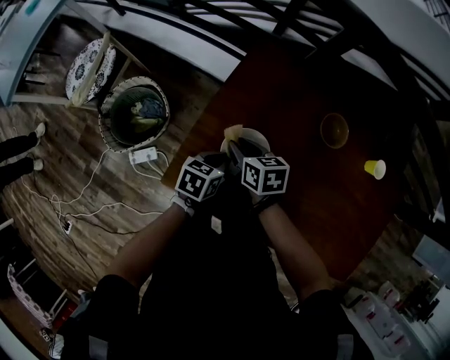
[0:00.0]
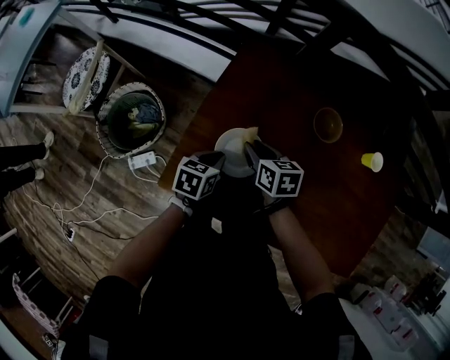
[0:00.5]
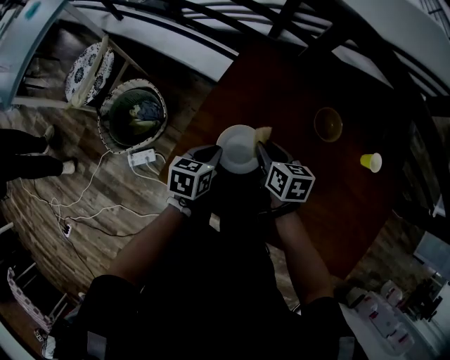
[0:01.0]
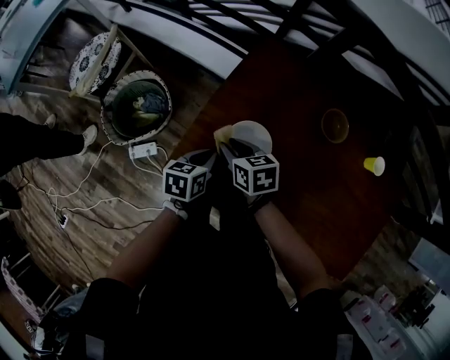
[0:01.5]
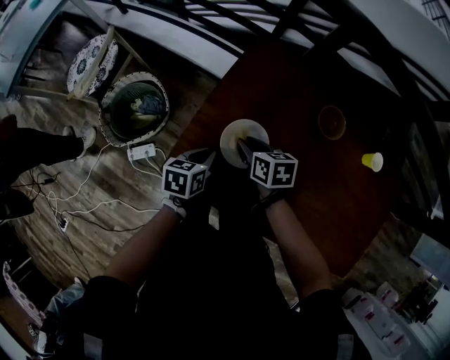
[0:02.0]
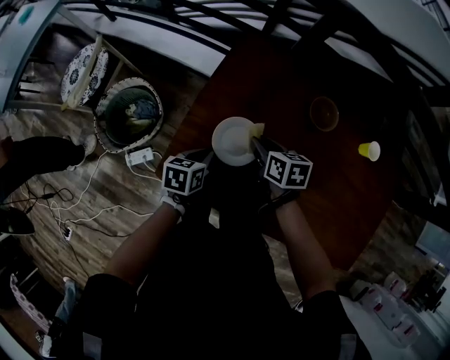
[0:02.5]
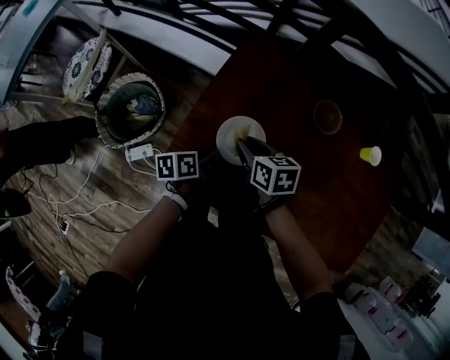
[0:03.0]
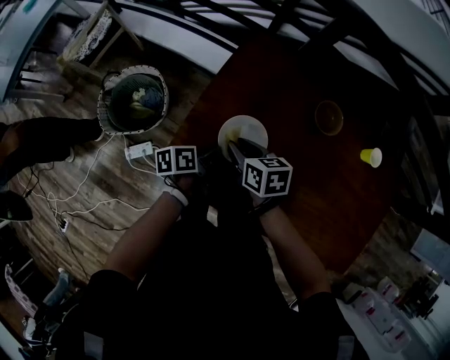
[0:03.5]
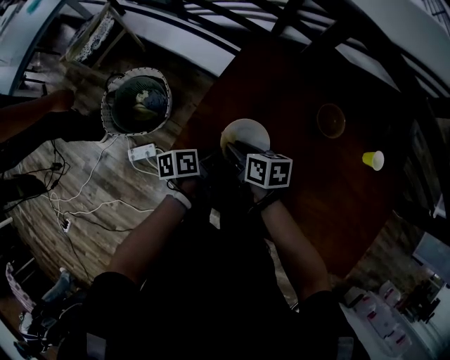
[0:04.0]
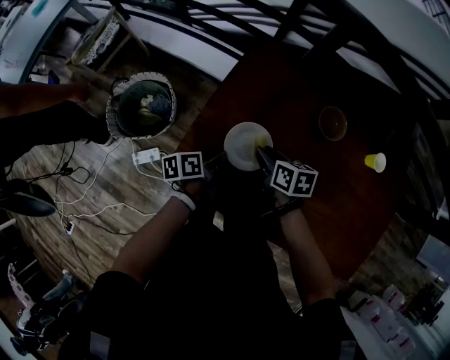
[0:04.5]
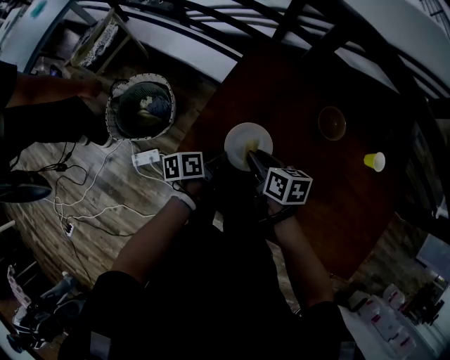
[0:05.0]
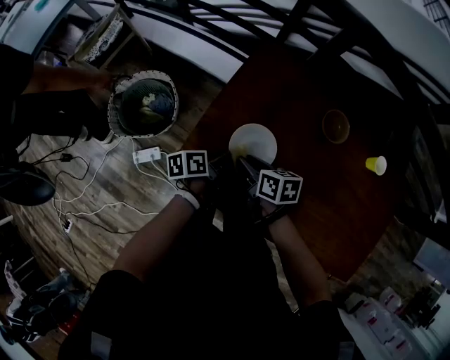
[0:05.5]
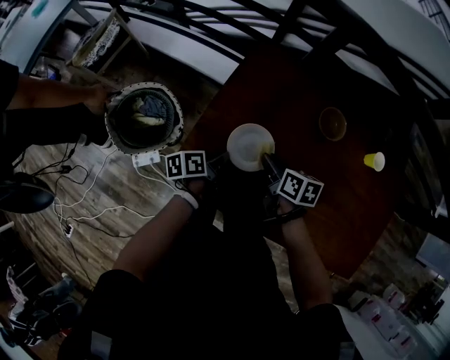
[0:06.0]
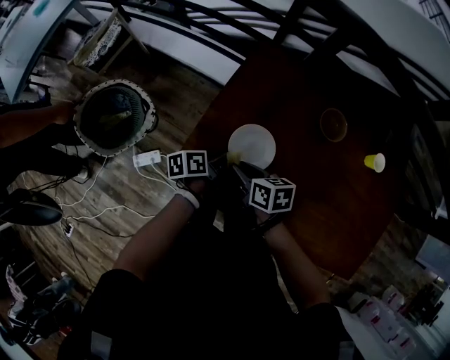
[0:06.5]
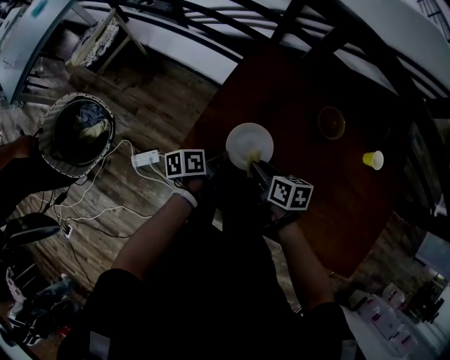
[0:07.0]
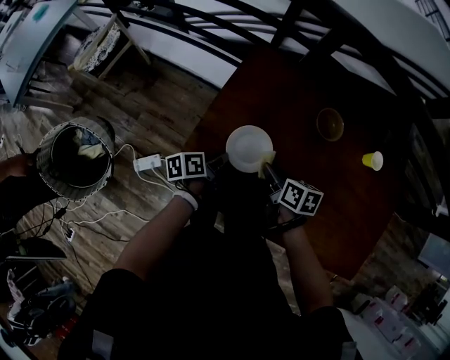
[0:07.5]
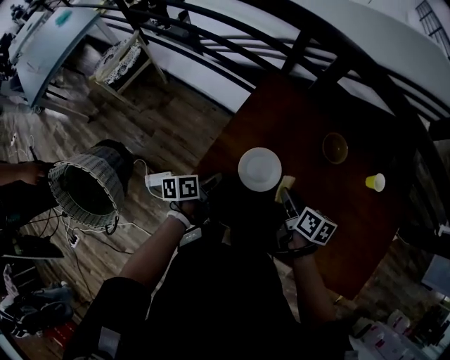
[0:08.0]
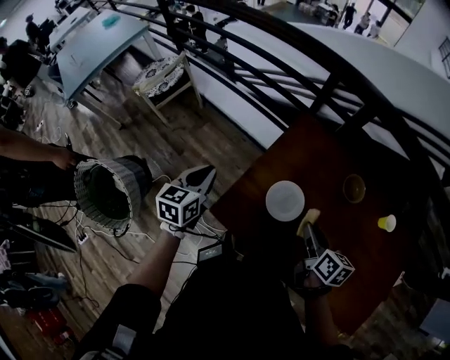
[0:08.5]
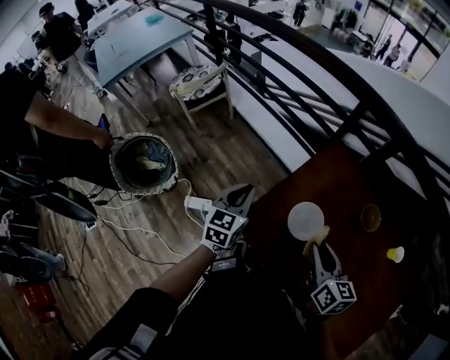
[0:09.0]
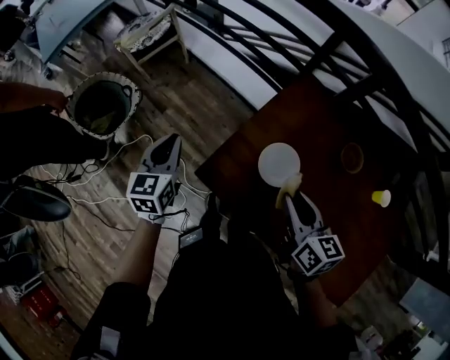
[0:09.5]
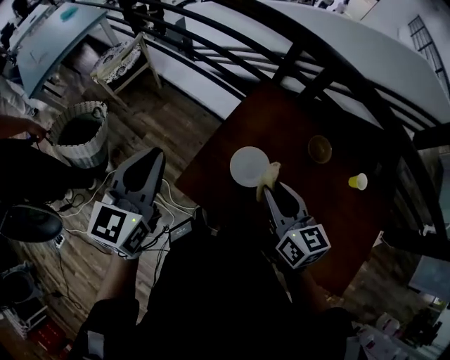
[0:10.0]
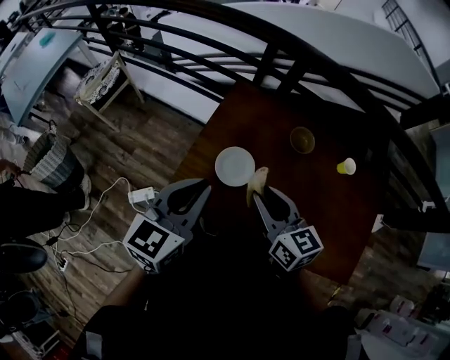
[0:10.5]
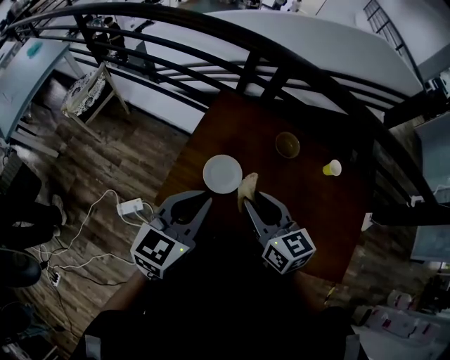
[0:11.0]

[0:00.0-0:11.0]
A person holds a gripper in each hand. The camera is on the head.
0:00.0 to 0:02.0: The right gripper swings left and right, approximately 10 cm each way, with 2 reversals. The left gripper ends up about 5 cm from where it was.
0:02.0 to 0:03.5: The left gripper turns by approximately 30 degrees. The right gripper reaches about 5 cm to the right, then returns.
0:03.5 to 0:05.5: The right gripper reaches approximately 5 cm to the right, then returns.
0:05.5 to 0:07.5: The right gripper goes left and right, roughly 10 cm each way, reversing 2 times.
0:07.5 to 0:09.0: The left gripper is displaced upward and to the left by about 25 cm, and changes its angle by roughly 70 degrees. Meanwhile the right gripper is displaced upward by approximately 20 cm, and turns by some 30 degrees.
0:09.0 to 0:11.0: The left gripper shifts by approximately 20 cm, and swivels approximately 30 degrees, while the right gripper ends up some 5 cm from where it was.

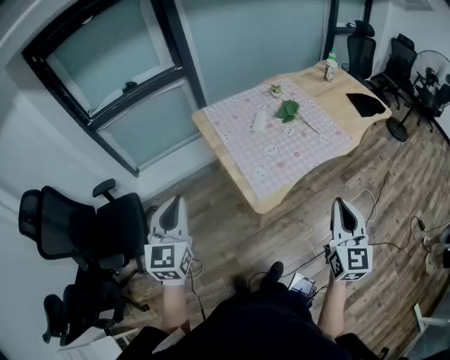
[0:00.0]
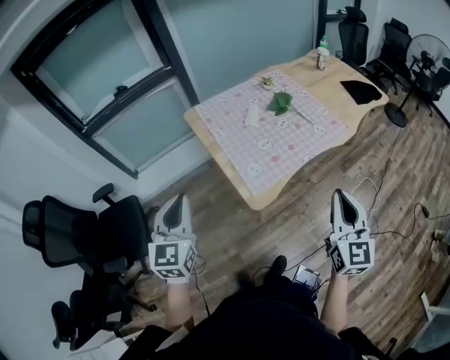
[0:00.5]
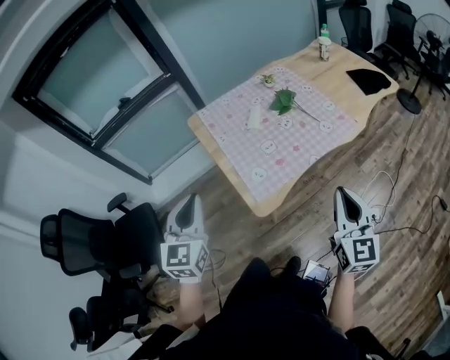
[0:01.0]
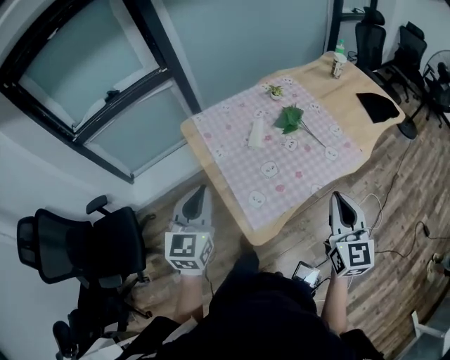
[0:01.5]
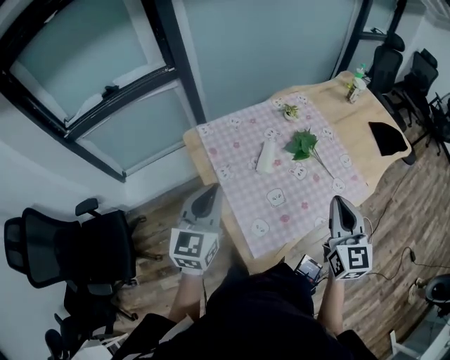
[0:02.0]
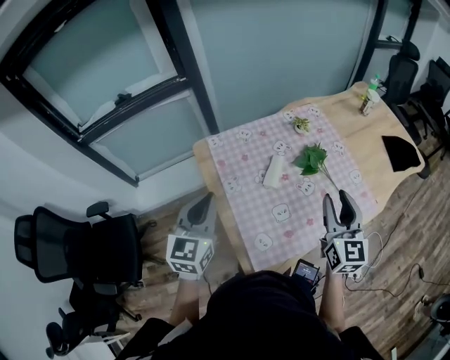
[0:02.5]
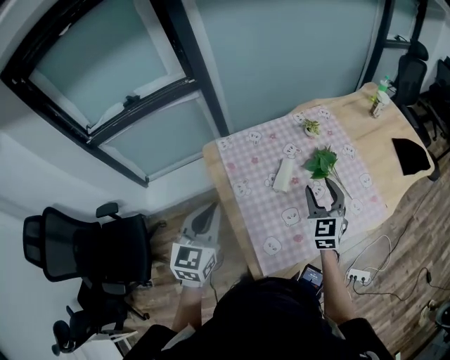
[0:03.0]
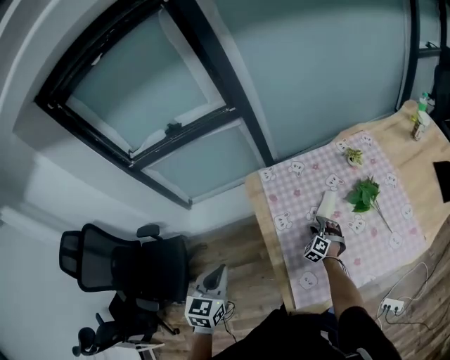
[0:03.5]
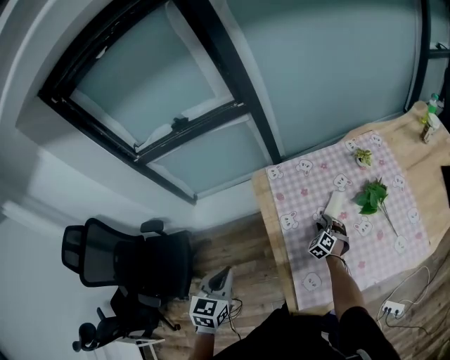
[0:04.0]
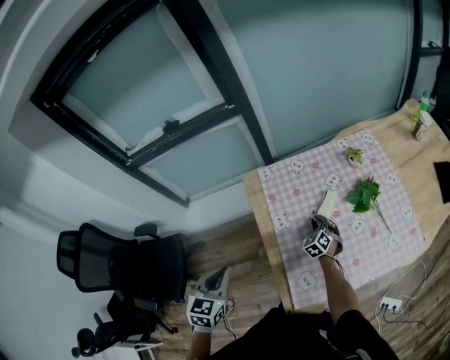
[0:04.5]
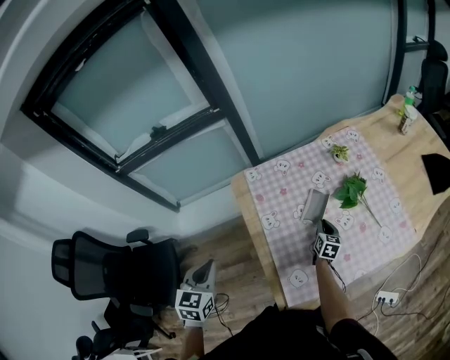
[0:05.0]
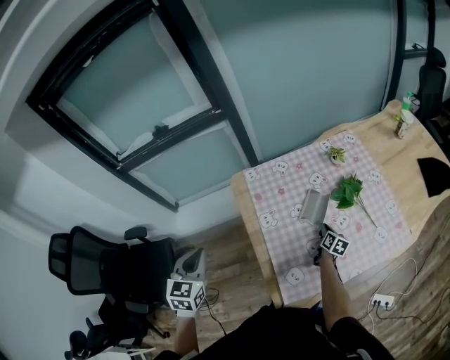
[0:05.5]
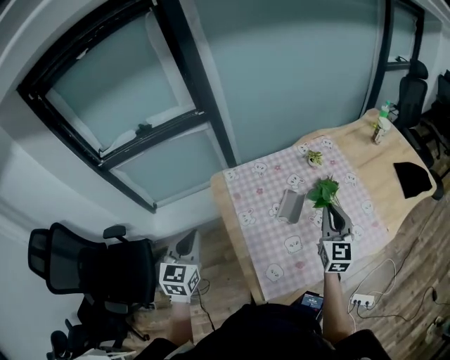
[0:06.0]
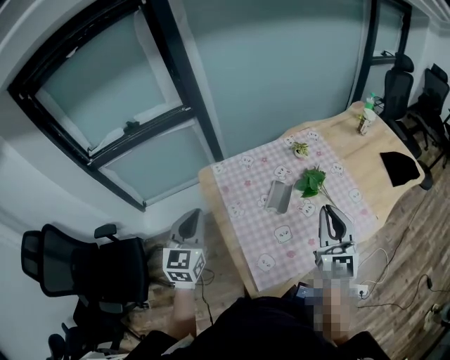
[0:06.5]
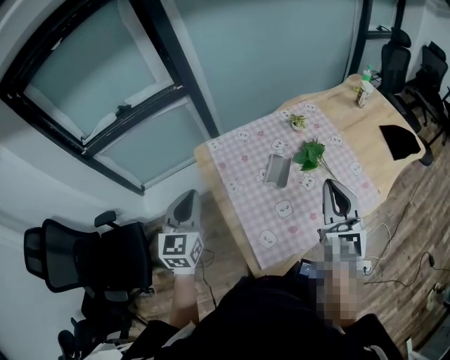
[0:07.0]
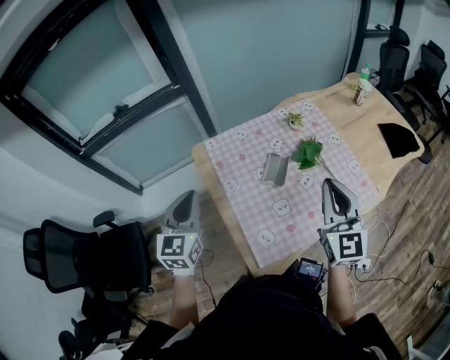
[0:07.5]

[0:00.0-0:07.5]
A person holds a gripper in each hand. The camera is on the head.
0:00.0 to 0:02.0: Both grippers travel together forward, some 35 cm.
0:02.0 to 0:04.0: The left gripper travels to the left and downward by some 15 cm, and turns by some 30 degrees, while the right gripper travels downward, forward and to the left by about 50 cm, angles its fingers downward, by about 40 degrees, and opens up.
0:04.0 to 0:05.5: The right gripper is displaced to the right and backward by about 15 cm, twists approximately 90 degrees clockwise, seen from behind, and closes up, while the left gripper shifts by about 5 cm.
0:05.5 to 0:07.5: The right gripper goes some 40 cm upward, and twists roughly 50 degrees counterclockwise, seen from behind. The left gripper goes some 10 cm to the right and upward.

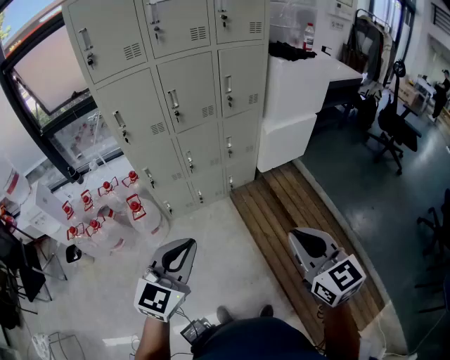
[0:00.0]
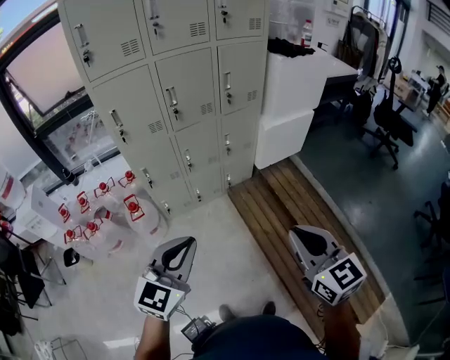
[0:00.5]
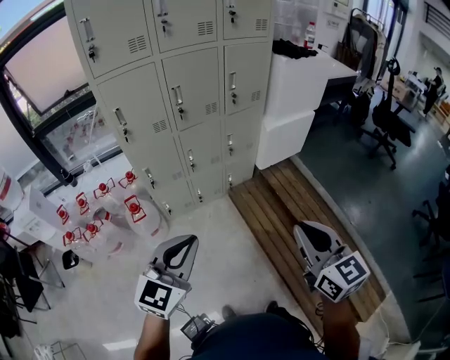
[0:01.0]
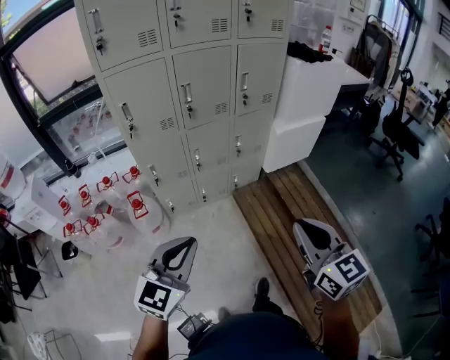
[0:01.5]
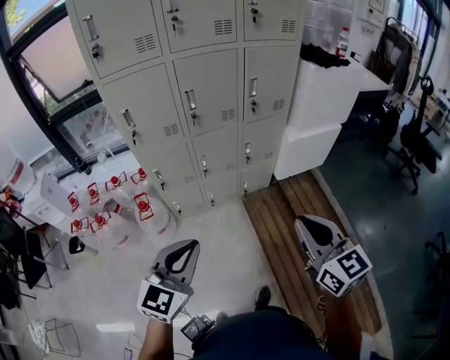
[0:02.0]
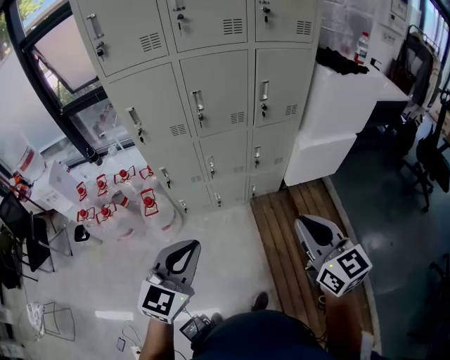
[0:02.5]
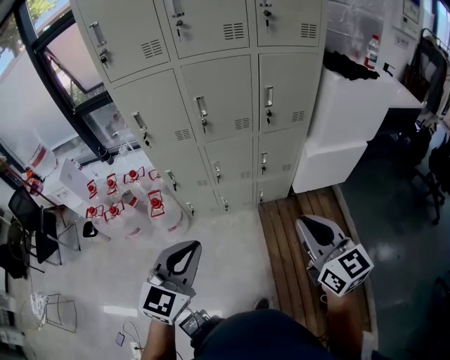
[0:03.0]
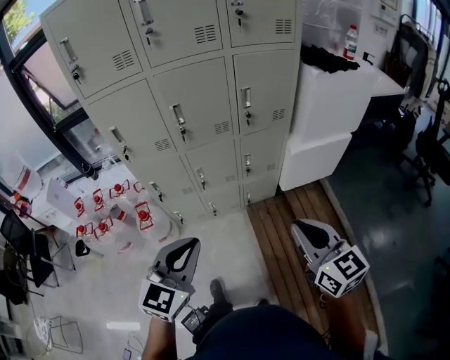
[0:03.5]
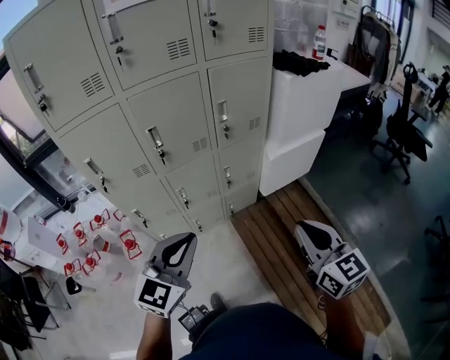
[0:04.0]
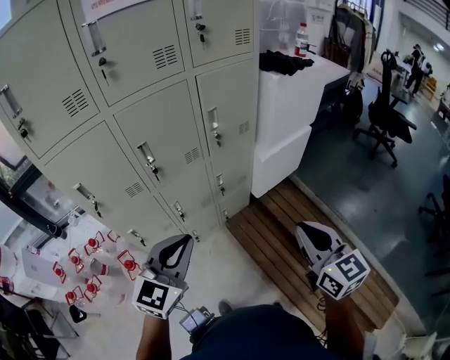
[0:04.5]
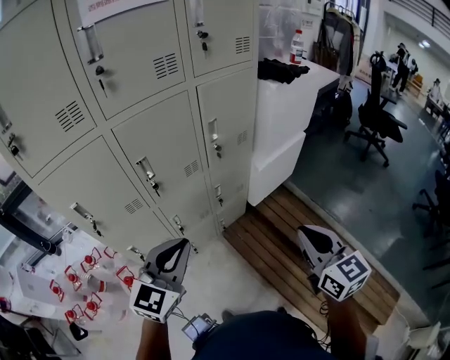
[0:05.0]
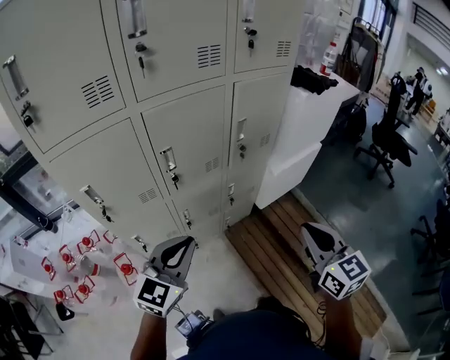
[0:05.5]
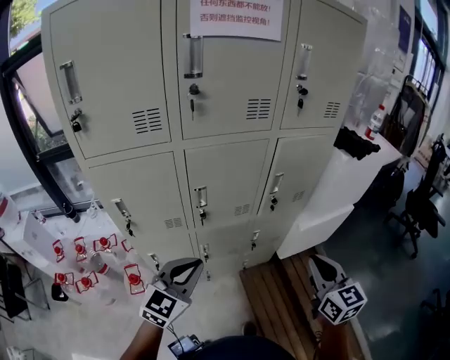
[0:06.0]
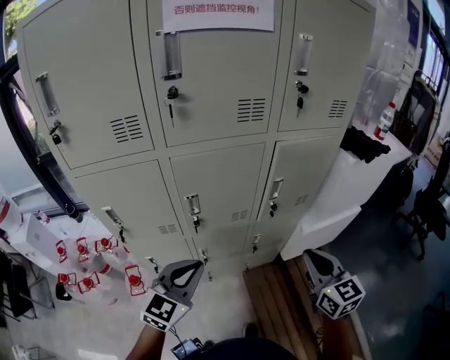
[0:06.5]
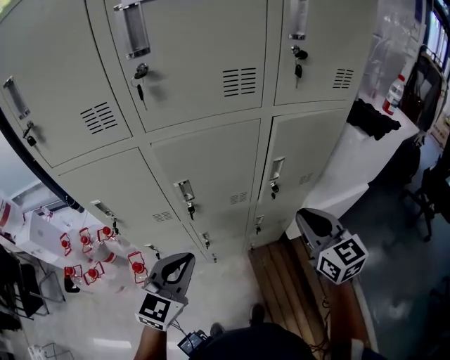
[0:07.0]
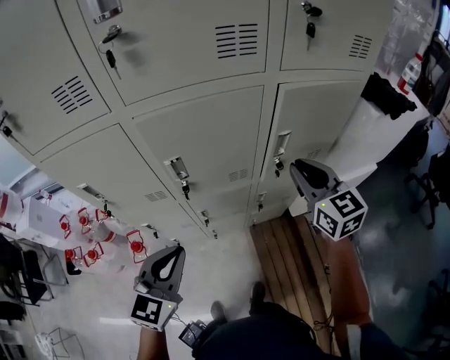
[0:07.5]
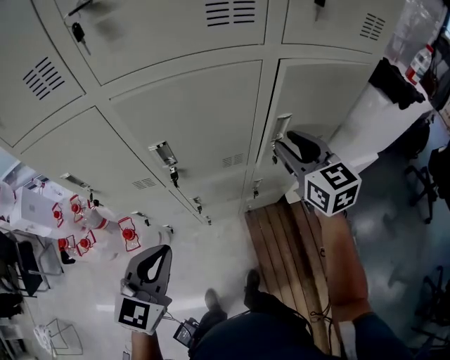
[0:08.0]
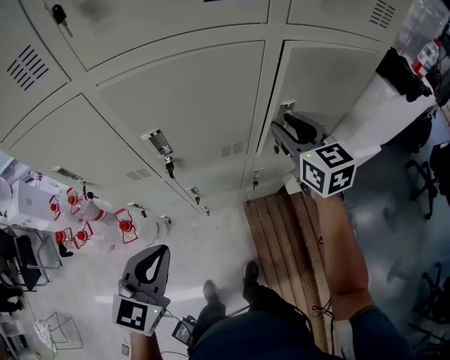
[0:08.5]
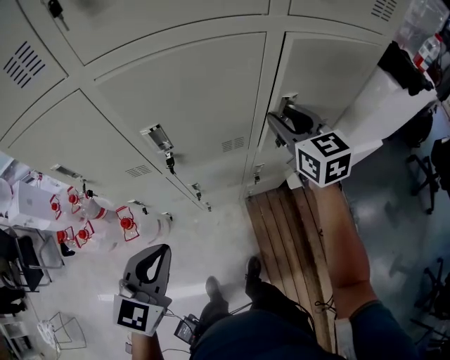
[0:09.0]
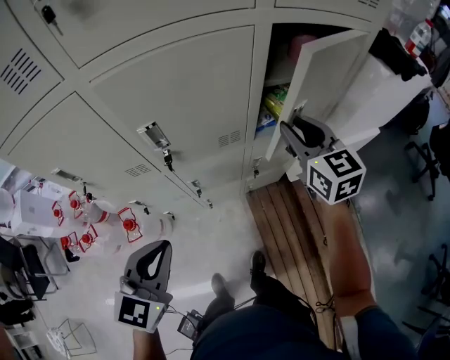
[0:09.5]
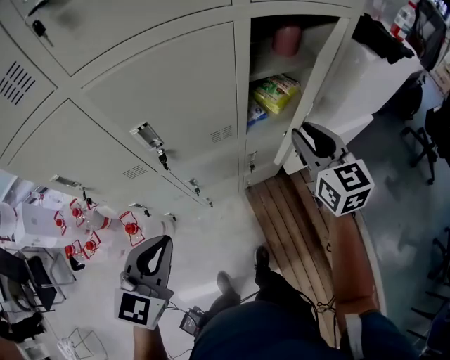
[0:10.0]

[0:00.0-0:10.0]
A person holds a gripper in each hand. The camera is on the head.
0:00.0 to 0:02.0: Both grippers move forward, some 15 cm.
0:02.0 to 0:04.0: Both grippers travel together forward and to the right, roughly 20 cm.
0:04.0 to 0:06.0: The right gripper goes some 20 cm forward and to the left. The left gripper travels to the left and forward by about 25 cm.
0:06.0 to 0:08.0: The right gripper heads forward, covering about 30 cm, and opens its fingers; the left gripper heads forward and downward, covering approximately 10 cm.
0:08.0 to 0:10.0: The right gripper travels backward and to the right by approximately 10 cm.
